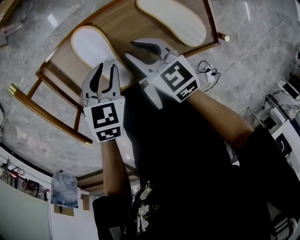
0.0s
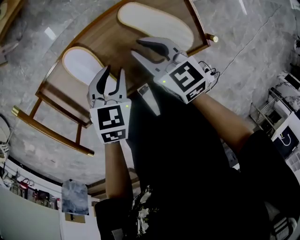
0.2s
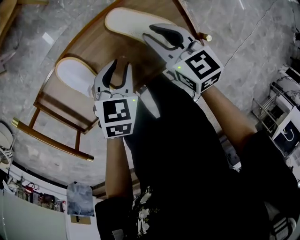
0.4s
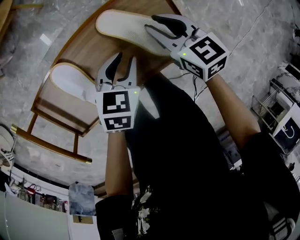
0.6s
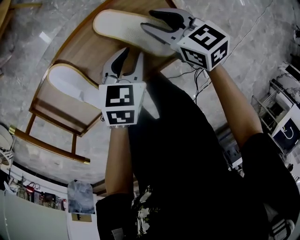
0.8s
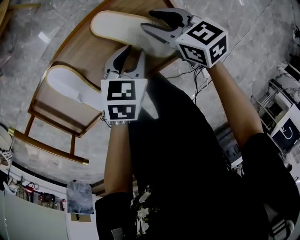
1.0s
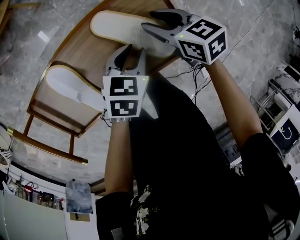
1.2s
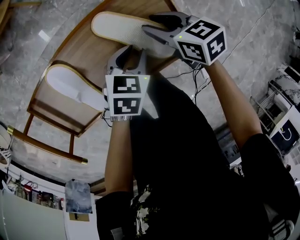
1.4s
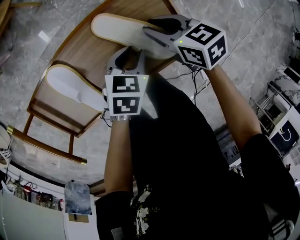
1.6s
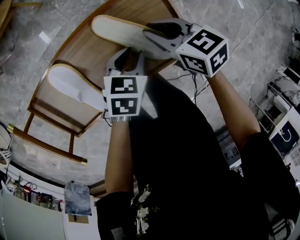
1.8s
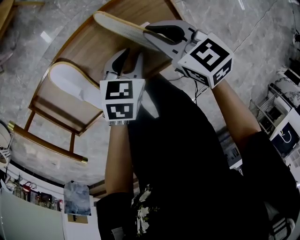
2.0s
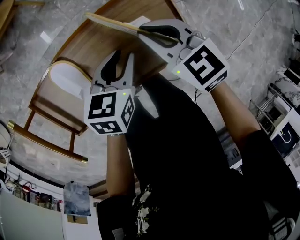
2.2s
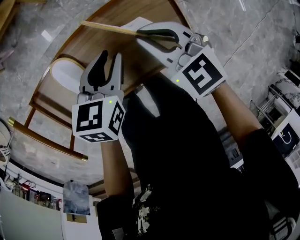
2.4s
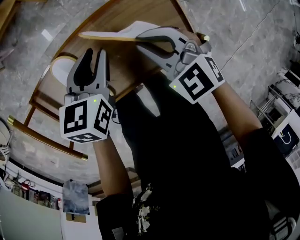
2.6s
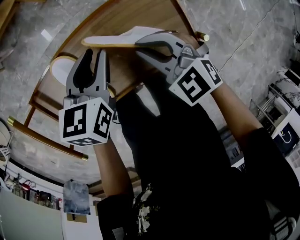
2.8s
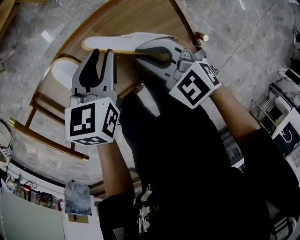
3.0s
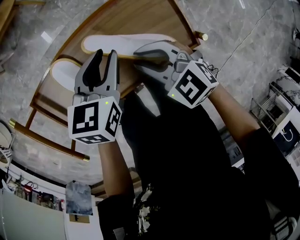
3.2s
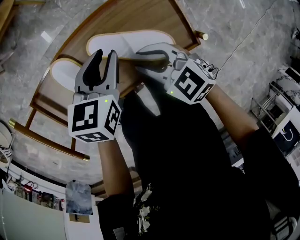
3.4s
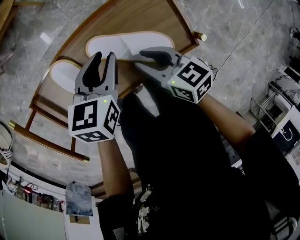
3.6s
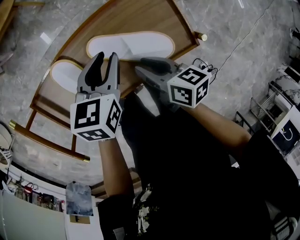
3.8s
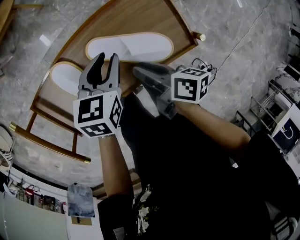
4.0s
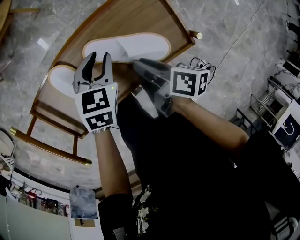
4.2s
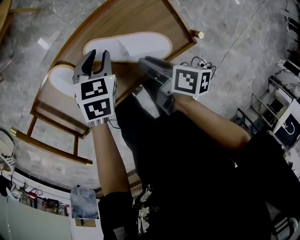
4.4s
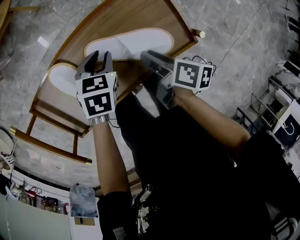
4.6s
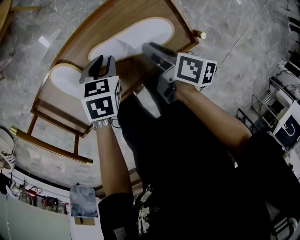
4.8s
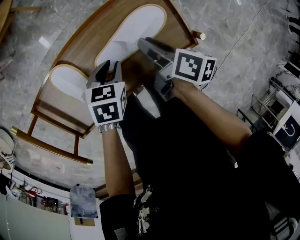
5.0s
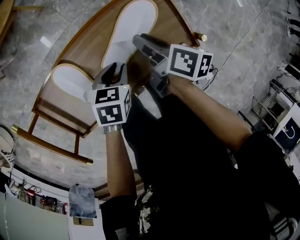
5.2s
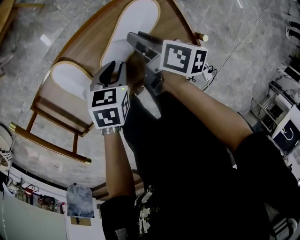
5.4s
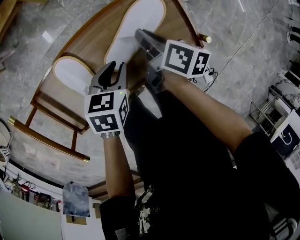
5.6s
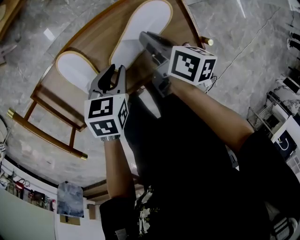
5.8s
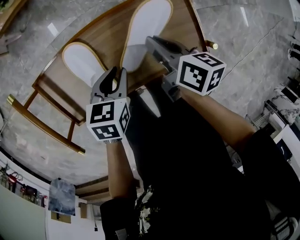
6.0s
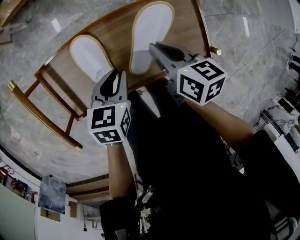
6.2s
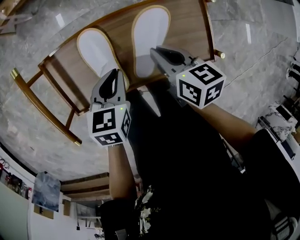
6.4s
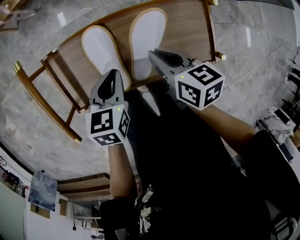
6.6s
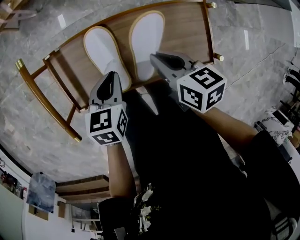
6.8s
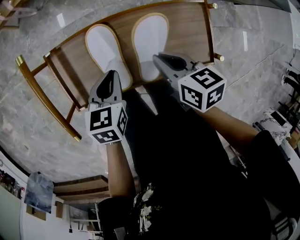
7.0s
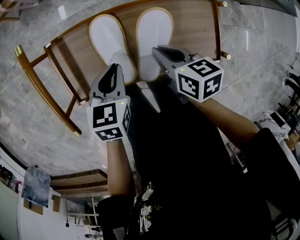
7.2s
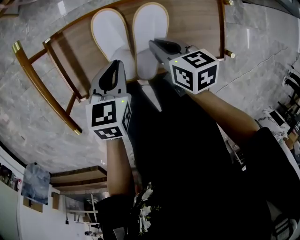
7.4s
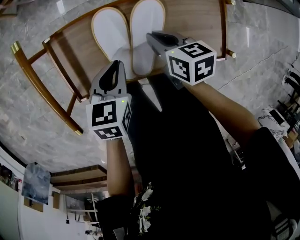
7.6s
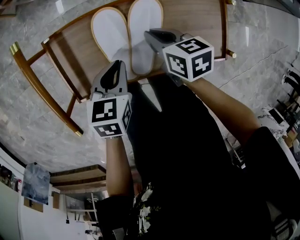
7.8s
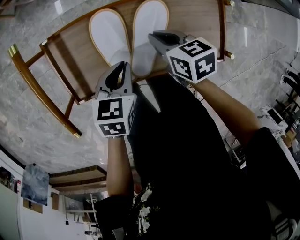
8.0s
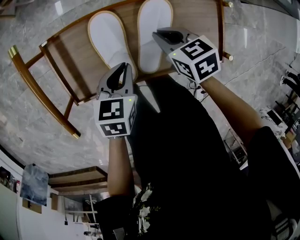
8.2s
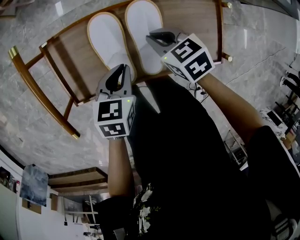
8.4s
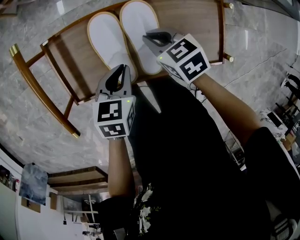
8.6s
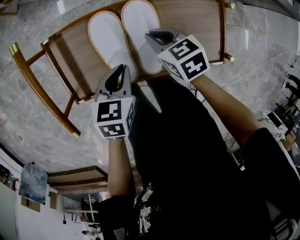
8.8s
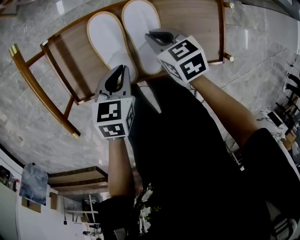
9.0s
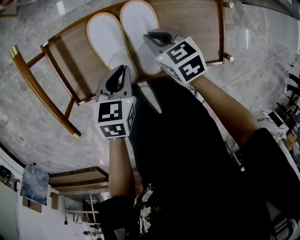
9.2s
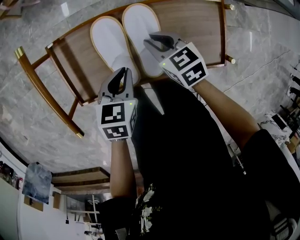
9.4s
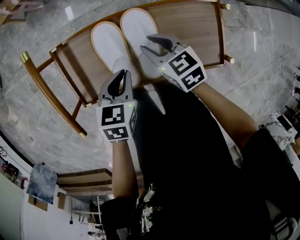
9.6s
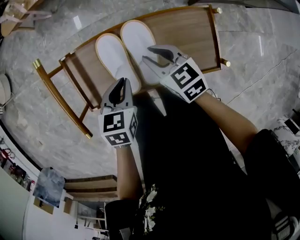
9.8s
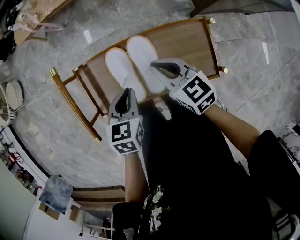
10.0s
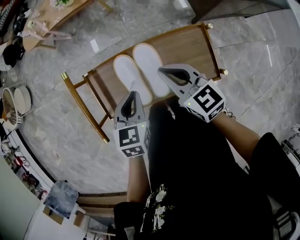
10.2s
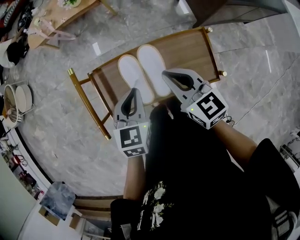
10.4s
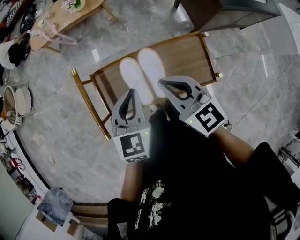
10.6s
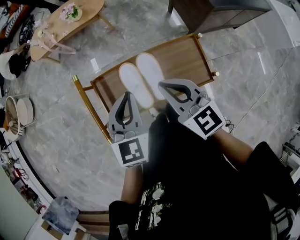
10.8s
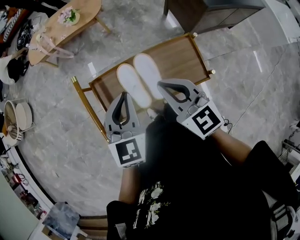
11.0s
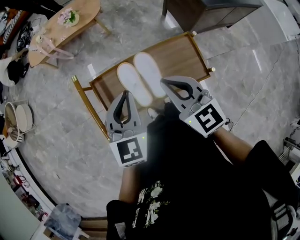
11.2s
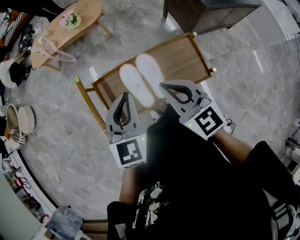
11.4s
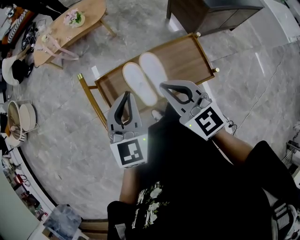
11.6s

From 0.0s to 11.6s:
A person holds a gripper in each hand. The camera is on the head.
From 0.0s to 1.4s: The left gripper shifts roughly 20 cm to the right. The right gripper moves to the right and forward, about 20 cm.
From 1.4s to 2.8s: The right gripper is displaced to the left, upward and backward by roughly 10 cm, rotates around the line of its fingers by approximately 50 degrees, counterclockwise from behind, and closes up, while the left gripper moves to the left, upward and forward, some 15 cm, and rotates roughly 20 degrees.
From 2.8s to 4.4s: The right gripper is displaced downward and backward by roughly 10 cm, rotates around the line of its fingers by approximately 100 degrees, clockwise from behind, and opens its fingers. Meanwhile the left gripper moves downward, about 10 cm, and turns by some 30 degrees.
From 4.4s to 5.8s: The left gripper goes approximately 5 cm backward. The right gripper shifts approximately 10 cm forward, and closes.
From 5.8s to 7.2s: The right gripper changes place by roughly 10 cm, and turns by approximately 40 degrees; the left gripper moves roughly 10 cm, and turns by approximately 20 degrees.
From 7.2s to 8.8s: The right gripper is displaced downward by roughly 5 cm, and turns by about 20 degrees.
From 8.8s to 10.2s: The two grippers go about 15 cm upward. The right gripper tips its fingers upward by approximately 30 degrees, and opens and closes again.
From 10.2s to 11.6s: The left gripper moves upward, some 15 cm, and turns by approximately 30 degrees; the right gripper is displaced upward, backward and to the left by roughly 15 cm.

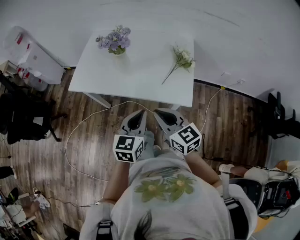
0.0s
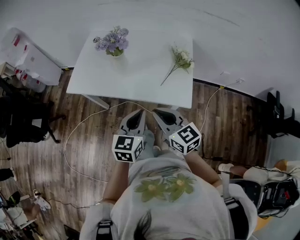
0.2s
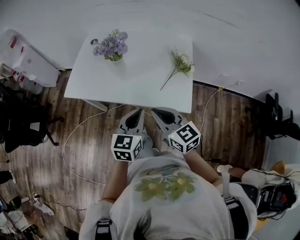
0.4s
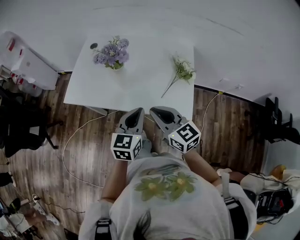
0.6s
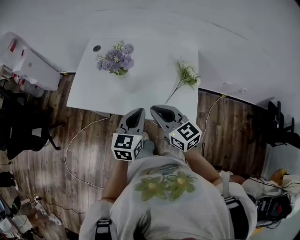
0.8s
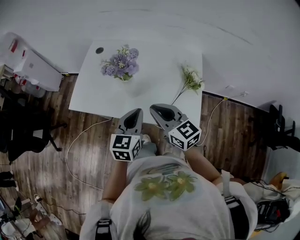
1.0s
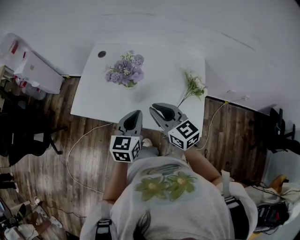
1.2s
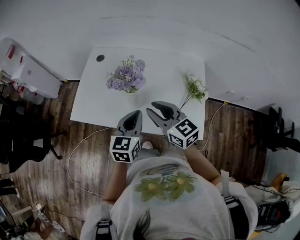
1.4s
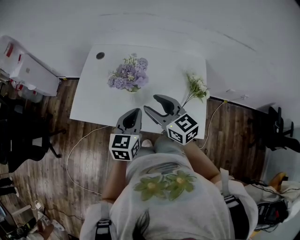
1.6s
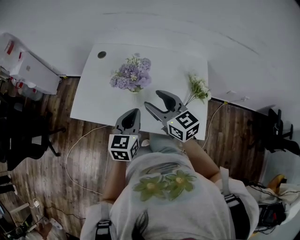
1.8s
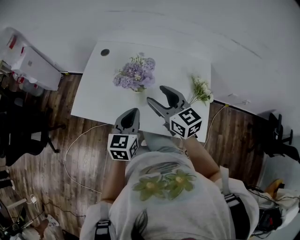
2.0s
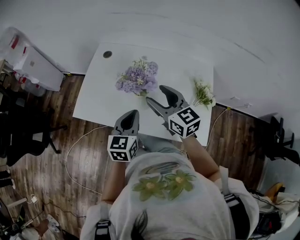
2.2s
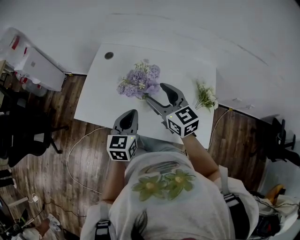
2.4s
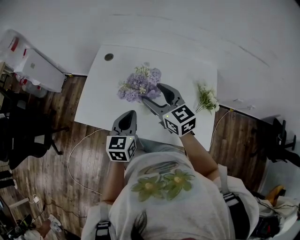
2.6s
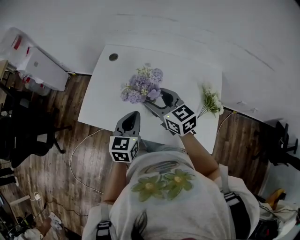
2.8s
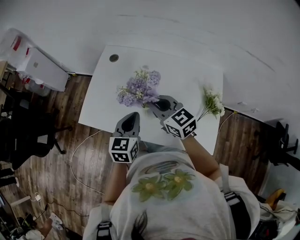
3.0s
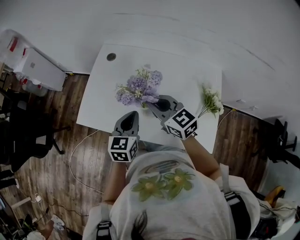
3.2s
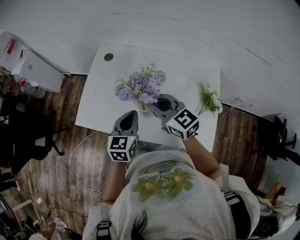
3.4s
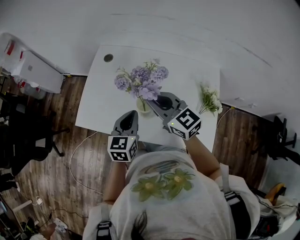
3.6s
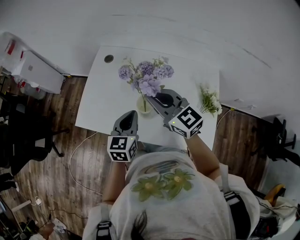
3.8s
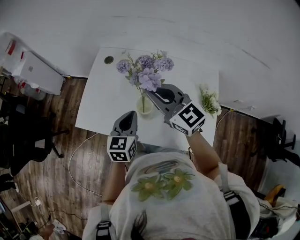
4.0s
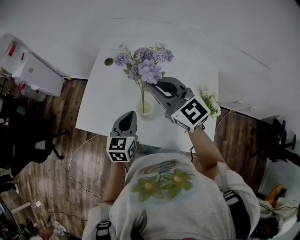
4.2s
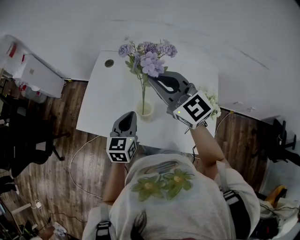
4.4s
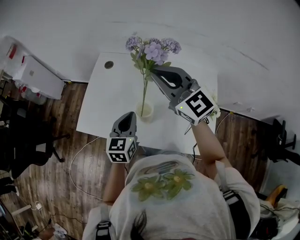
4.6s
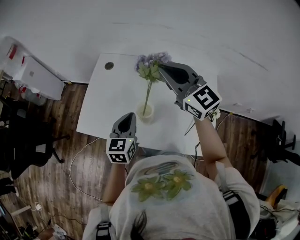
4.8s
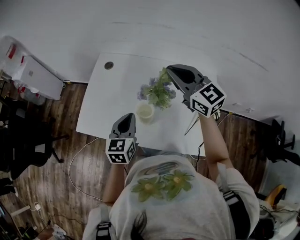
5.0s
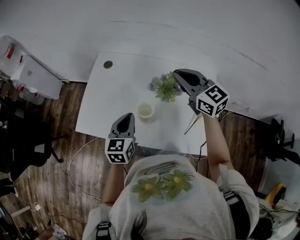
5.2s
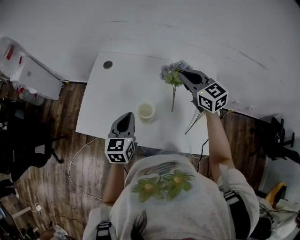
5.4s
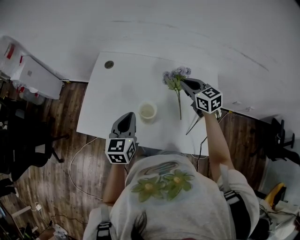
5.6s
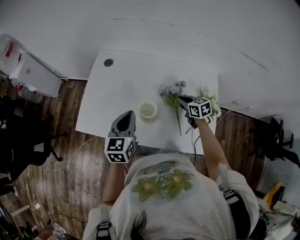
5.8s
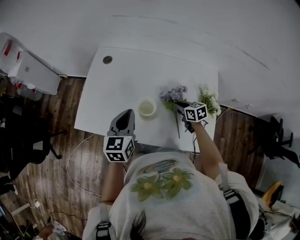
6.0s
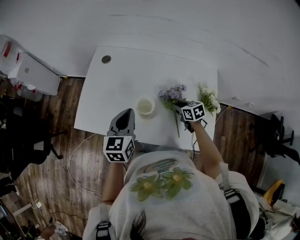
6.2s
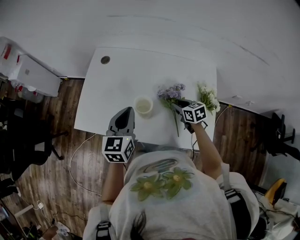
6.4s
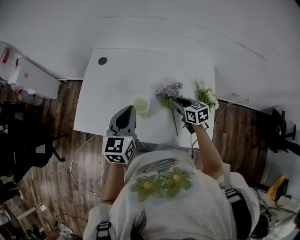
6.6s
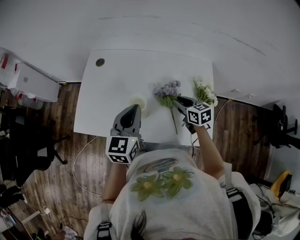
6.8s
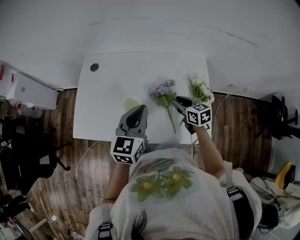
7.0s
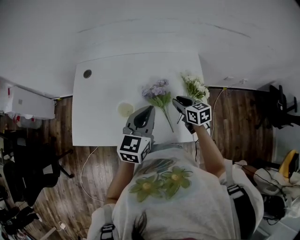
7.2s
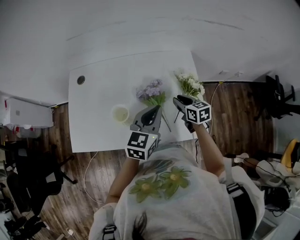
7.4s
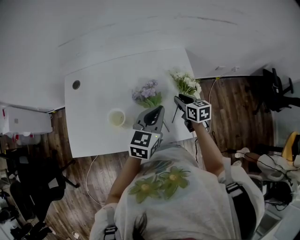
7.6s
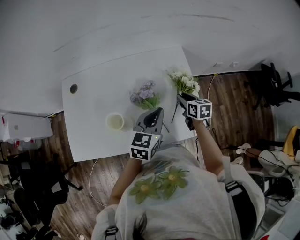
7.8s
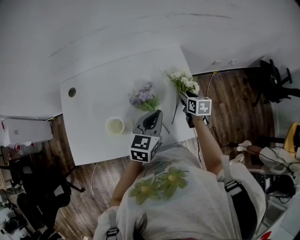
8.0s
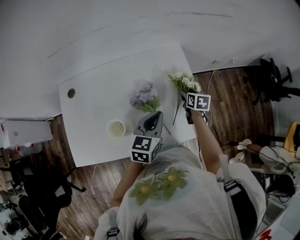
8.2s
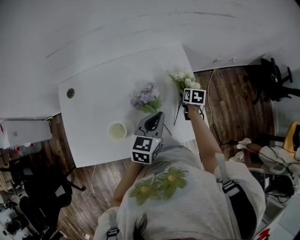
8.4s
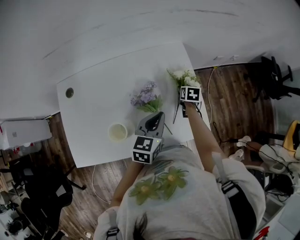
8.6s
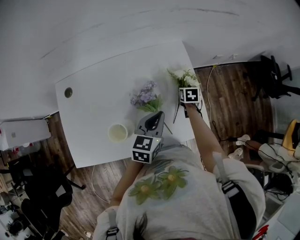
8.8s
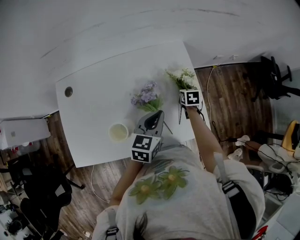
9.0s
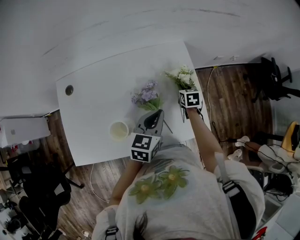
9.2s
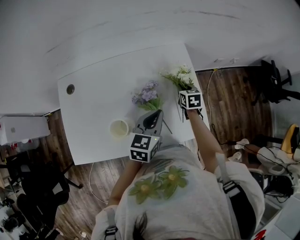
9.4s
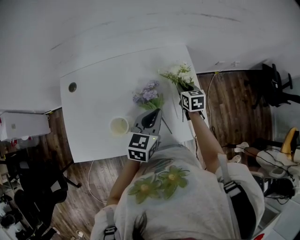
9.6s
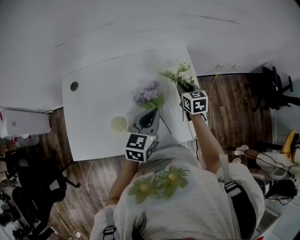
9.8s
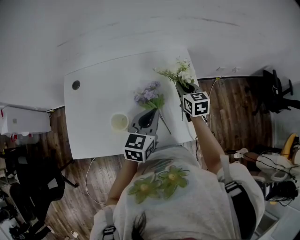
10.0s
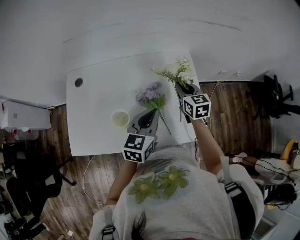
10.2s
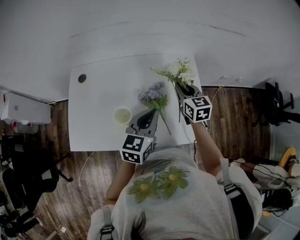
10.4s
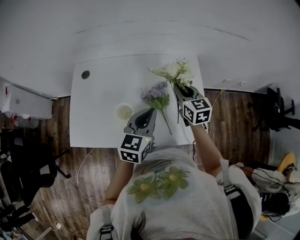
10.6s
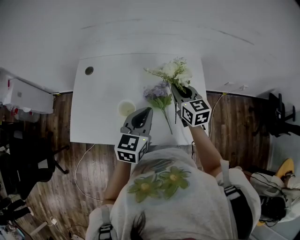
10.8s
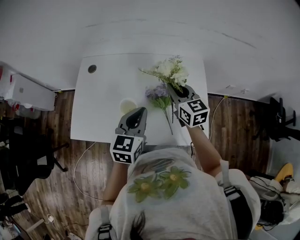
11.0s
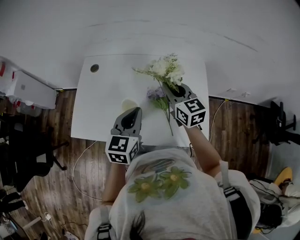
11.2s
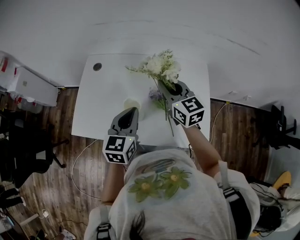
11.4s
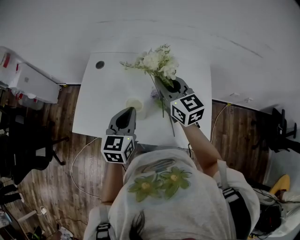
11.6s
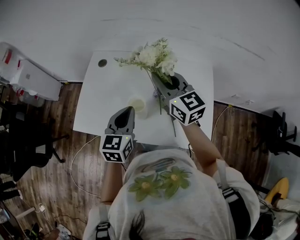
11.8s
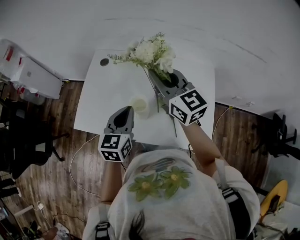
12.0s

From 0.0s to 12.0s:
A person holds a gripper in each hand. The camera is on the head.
From 0.0s to 1.6s: The grippers both shift forward by roughly 30 cm. The right gripper opens.
From 1.6s to 3.0s: The left gripper travels forward and to the left by some 10 cm, while the right gripper travels forward by about 10 cm, and closes.
From 3.0s to 4.4s: The right gripper travels upward by approximately 15 cm, and swivels about 20 degrees.
From 4.4s to 6.0s: The right gripper moves downward, approximately 35 cm, and angles its fingers downward, by some 40 degrees.
From 6.0s to 7.6s: The left gripper changes place by approximately 25 cm, and rotates about 30 degrees, while the right gripper ends up some 15 cm from where it was, and turns by approximately 30 degrees.
From 7.6s to 9.0s: The right gripper goes roughly 15 cm forward and downward, turns by approximately 30 degrees, and opens, then closes again; the left gripper is displaced downward by some 5 cm.
From 9.0s to 10.4s: The left gripper heads upward and backward, covering some 10 cm; the right gripper is displaced upward and to the left by roughly 20 cm, and tilts its fingers roughly 30 degrees upward.
From 10.4s to 12.0s: The right gripper moves about 30 cm, and swivels roughly 40 degrees. Meanwhile the left gripper moves some 15 cm, and rotates about 20 degrees.
